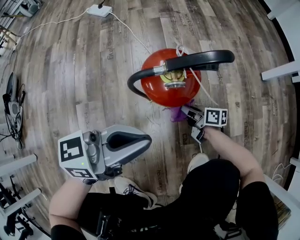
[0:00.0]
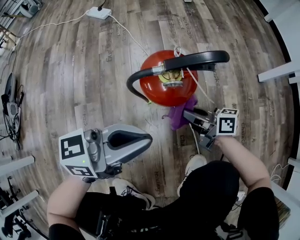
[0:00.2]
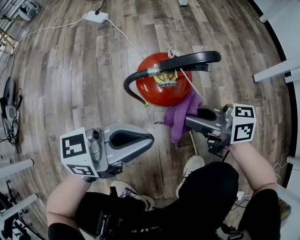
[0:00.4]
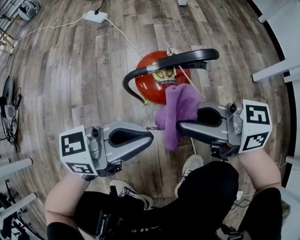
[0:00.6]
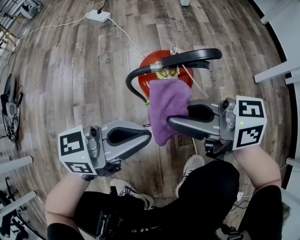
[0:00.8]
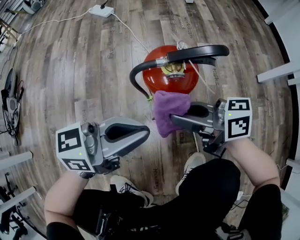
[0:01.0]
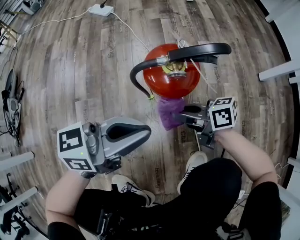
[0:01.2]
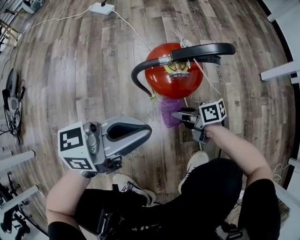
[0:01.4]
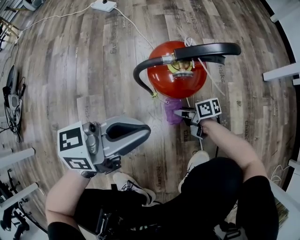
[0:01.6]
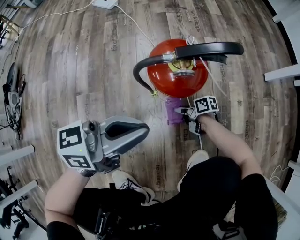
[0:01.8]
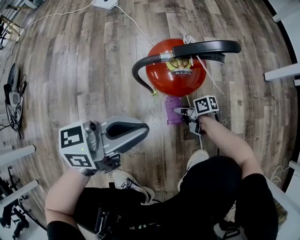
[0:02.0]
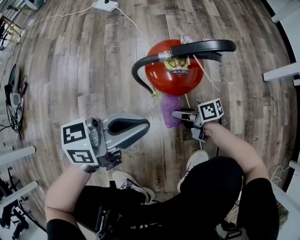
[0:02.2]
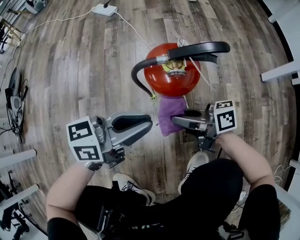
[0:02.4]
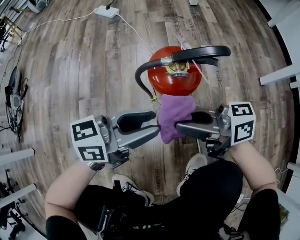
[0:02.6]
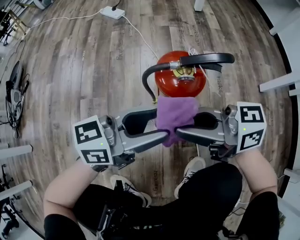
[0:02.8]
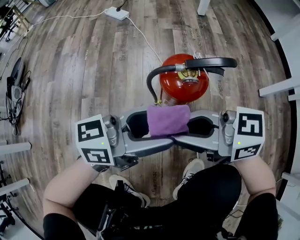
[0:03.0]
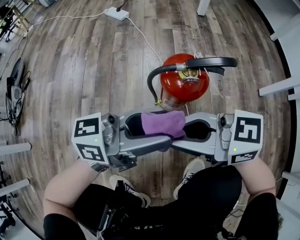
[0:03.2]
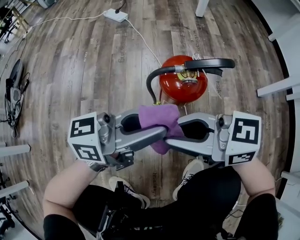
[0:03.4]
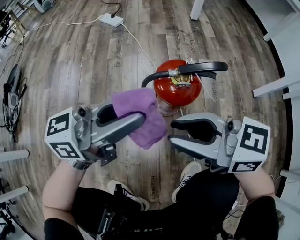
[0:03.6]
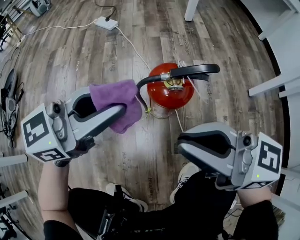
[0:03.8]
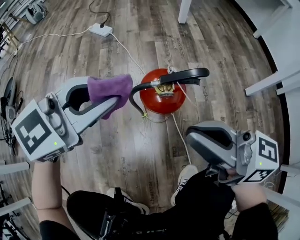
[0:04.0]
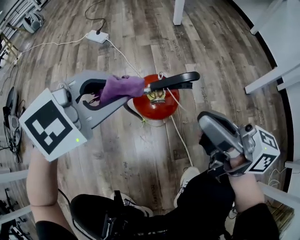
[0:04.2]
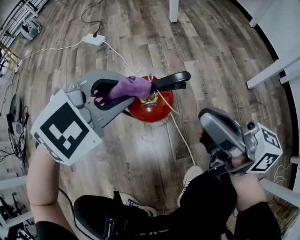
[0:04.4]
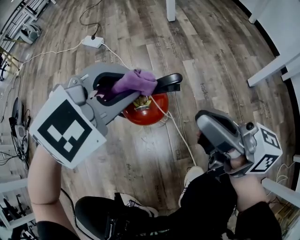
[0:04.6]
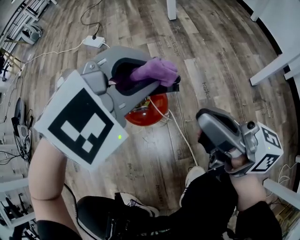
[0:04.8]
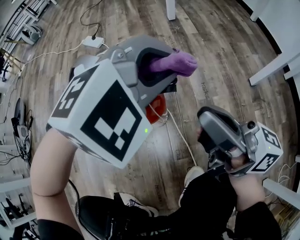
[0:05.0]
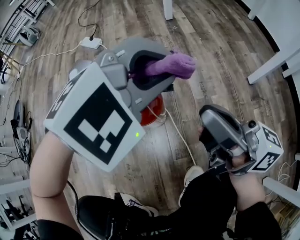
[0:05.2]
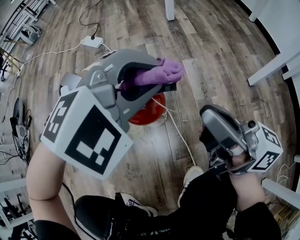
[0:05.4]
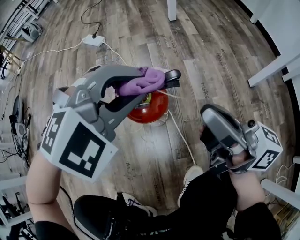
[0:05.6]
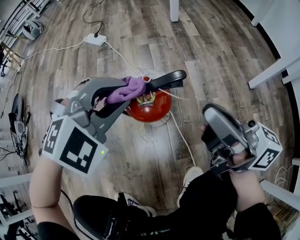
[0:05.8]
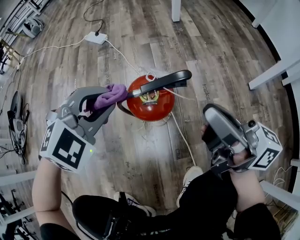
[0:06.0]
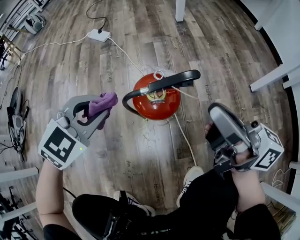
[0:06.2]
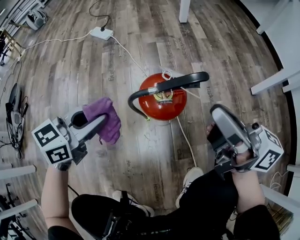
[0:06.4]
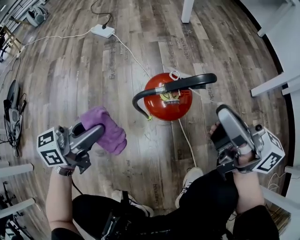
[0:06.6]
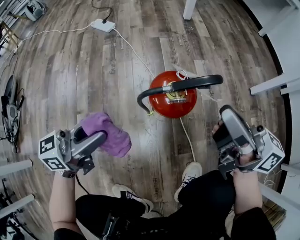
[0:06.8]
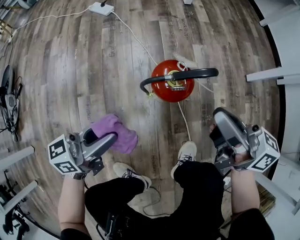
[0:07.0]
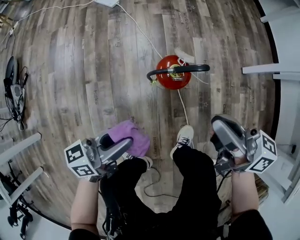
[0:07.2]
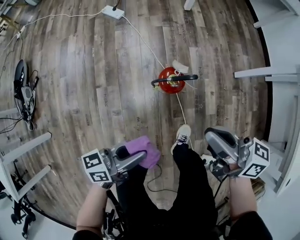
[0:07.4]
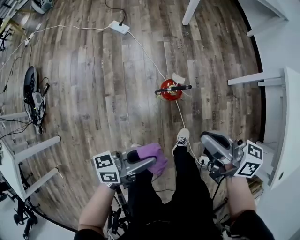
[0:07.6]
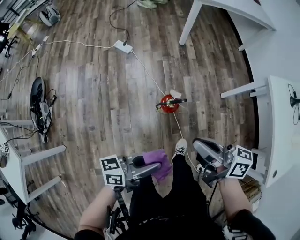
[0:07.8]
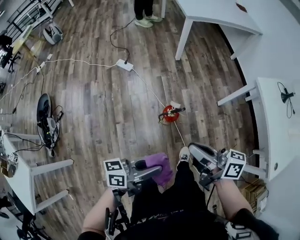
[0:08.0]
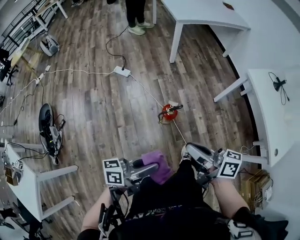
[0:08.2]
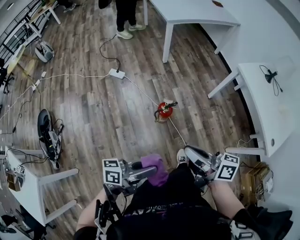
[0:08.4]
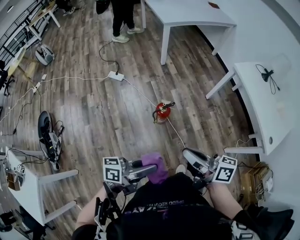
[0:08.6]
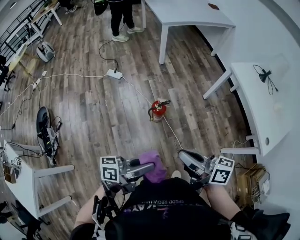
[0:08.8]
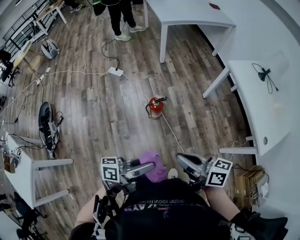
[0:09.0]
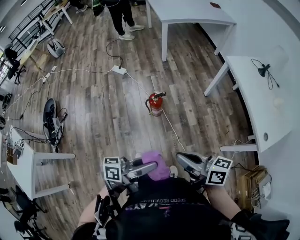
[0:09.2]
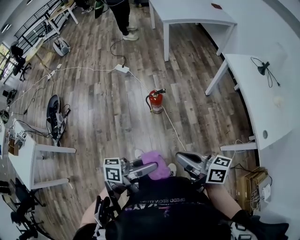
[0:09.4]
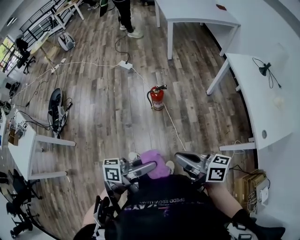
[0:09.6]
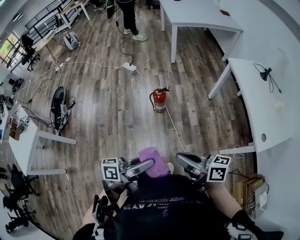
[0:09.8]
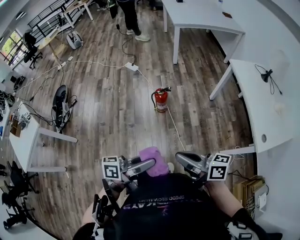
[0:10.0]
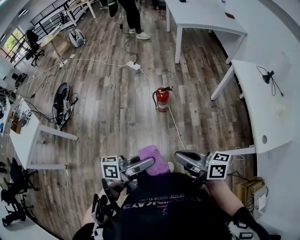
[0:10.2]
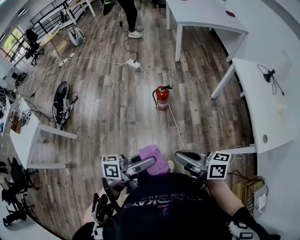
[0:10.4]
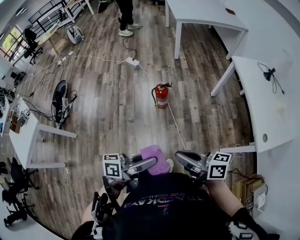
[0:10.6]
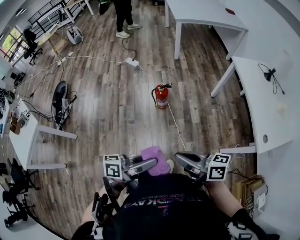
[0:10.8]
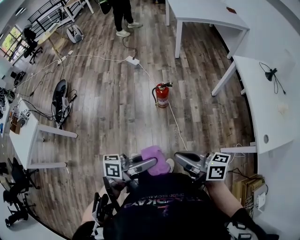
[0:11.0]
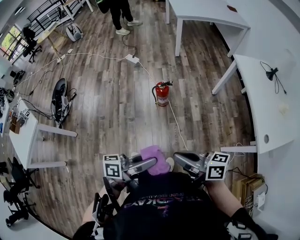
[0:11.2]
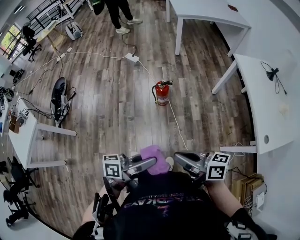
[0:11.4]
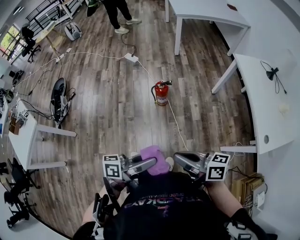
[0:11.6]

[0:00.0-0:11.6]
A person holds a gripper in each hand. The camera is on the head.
0:00.0 to 0:01.4: The right gripper goes upward and returns, about 35 cm each way, and changes its angle by roughly 20 degrees.
0:01.4 to 0:02.8: The left gripper opens up, while the right gripper moves upward, about 25 cm, and swivels about 40 degrees.
0:02.8 to 0:04.4: The right gripper changes place by approximately 15 cm, and swivels roughly 40 degrees. Meanwhile the left gripper ends up some 15 cm from where it was, points its fingers about 40 degrees further downward, and closes up.
0:04.4 to 0:05.8: The left gripper goes to the right and returns, approximately 10 cm each way.
0:05.8 to 0:07.2: The left gripper moves backward, to the left and upward, about 20 cm, and twists approximately 90 degrees counterclockwise, seen from behind. Meanwhile the right gripper shifts some 15 cm upward and to the left, and swivels some 20 degrees.
0:07.2 to 0:08.8: Both grippers move upward and backward, some 50 cm. The left gripper rotates some 30 degrees.
0:08.8 to 0:10.2: The grippers both shift backward and to the right by about 25 cm. The right gripper rotates approximately 20 degrees.
0:10.2 to 0:11.6: The grippers make only small movements.

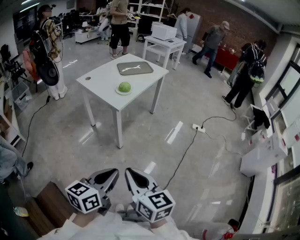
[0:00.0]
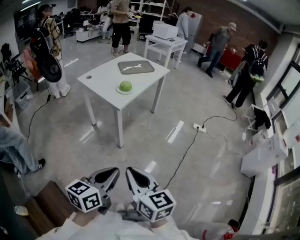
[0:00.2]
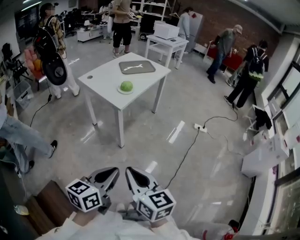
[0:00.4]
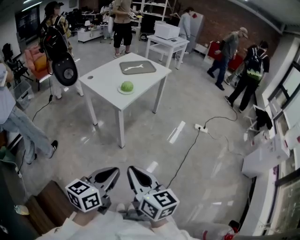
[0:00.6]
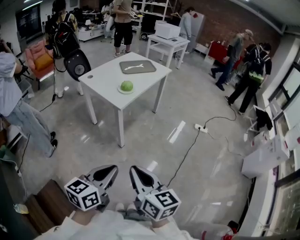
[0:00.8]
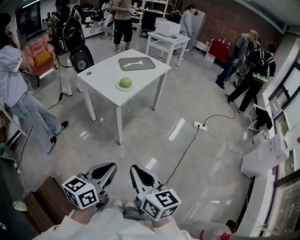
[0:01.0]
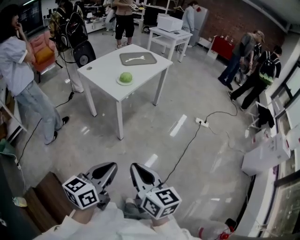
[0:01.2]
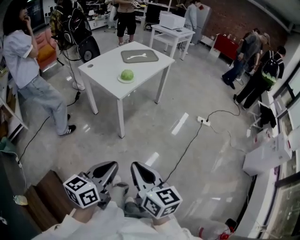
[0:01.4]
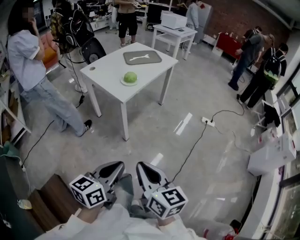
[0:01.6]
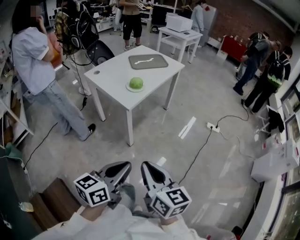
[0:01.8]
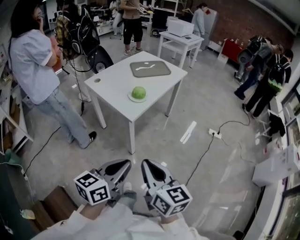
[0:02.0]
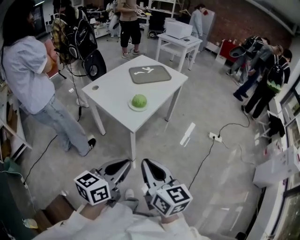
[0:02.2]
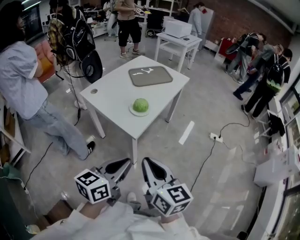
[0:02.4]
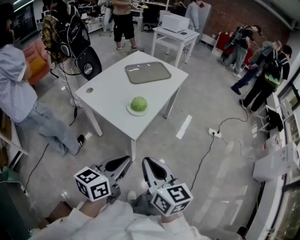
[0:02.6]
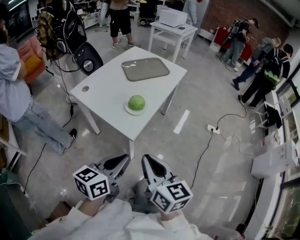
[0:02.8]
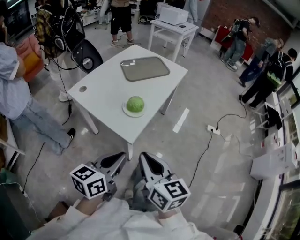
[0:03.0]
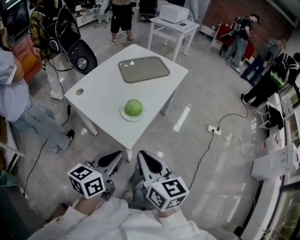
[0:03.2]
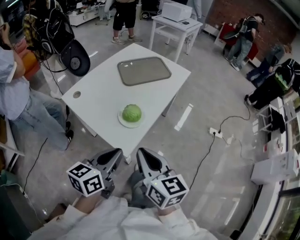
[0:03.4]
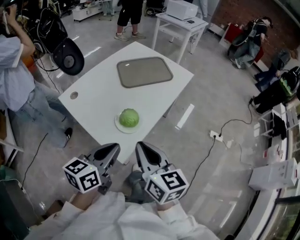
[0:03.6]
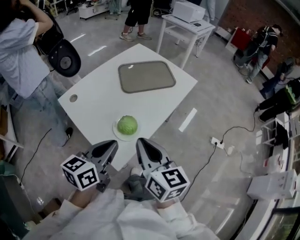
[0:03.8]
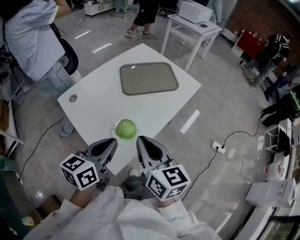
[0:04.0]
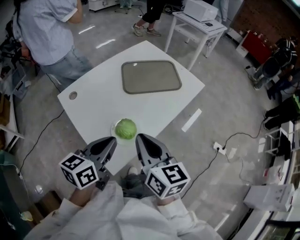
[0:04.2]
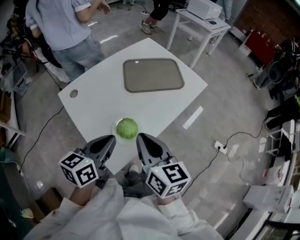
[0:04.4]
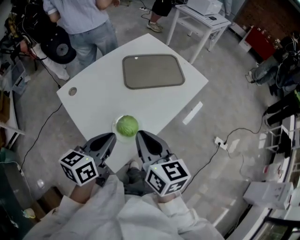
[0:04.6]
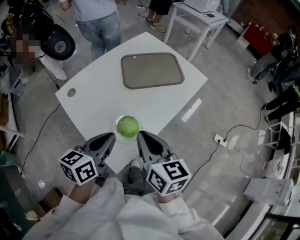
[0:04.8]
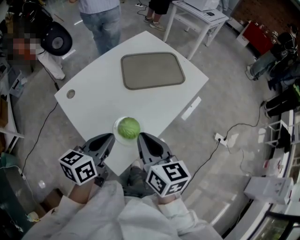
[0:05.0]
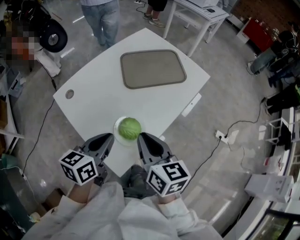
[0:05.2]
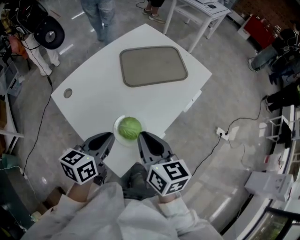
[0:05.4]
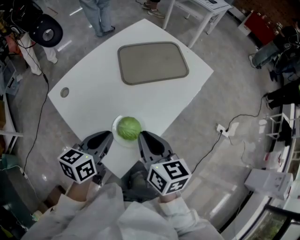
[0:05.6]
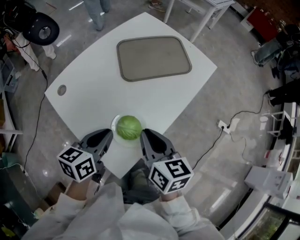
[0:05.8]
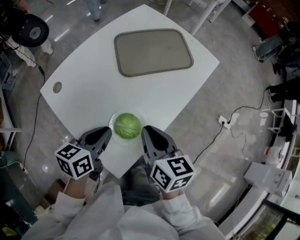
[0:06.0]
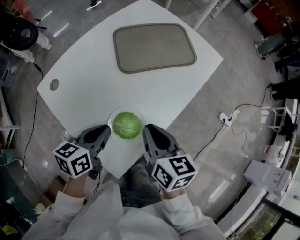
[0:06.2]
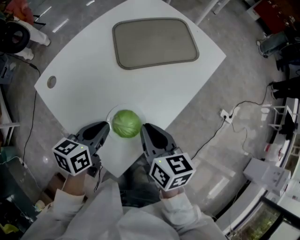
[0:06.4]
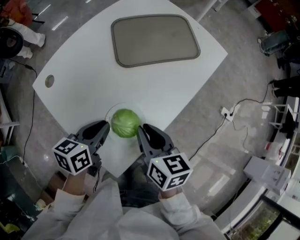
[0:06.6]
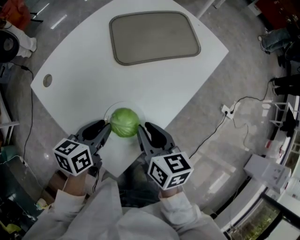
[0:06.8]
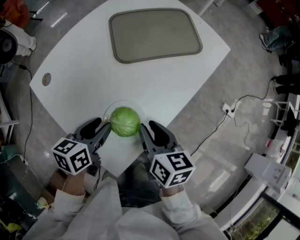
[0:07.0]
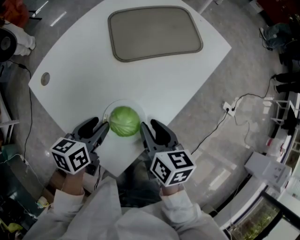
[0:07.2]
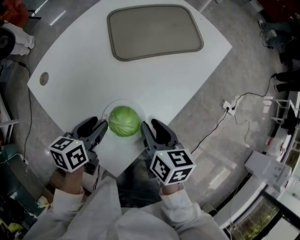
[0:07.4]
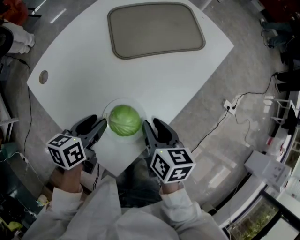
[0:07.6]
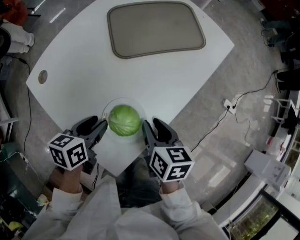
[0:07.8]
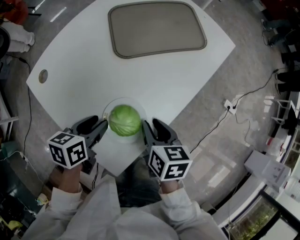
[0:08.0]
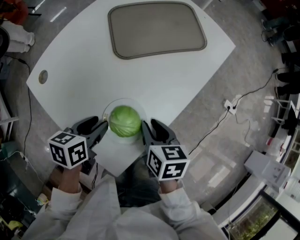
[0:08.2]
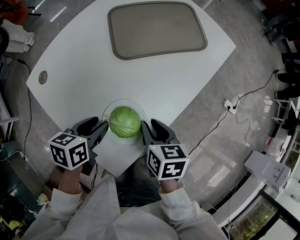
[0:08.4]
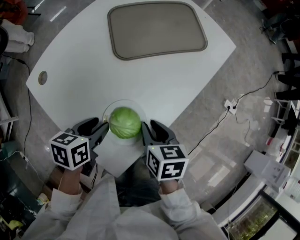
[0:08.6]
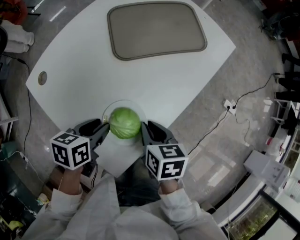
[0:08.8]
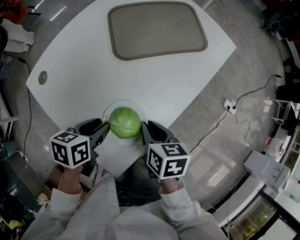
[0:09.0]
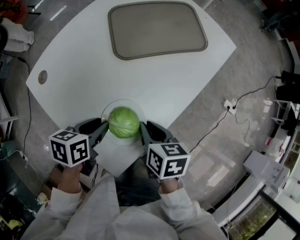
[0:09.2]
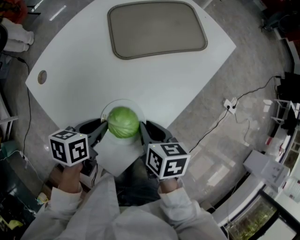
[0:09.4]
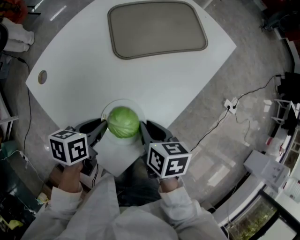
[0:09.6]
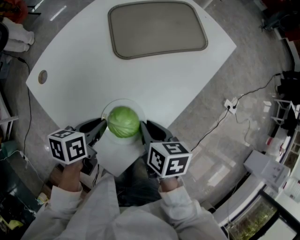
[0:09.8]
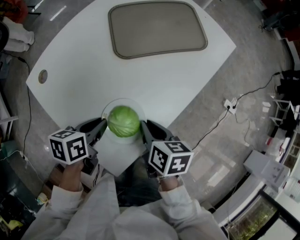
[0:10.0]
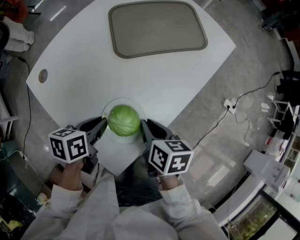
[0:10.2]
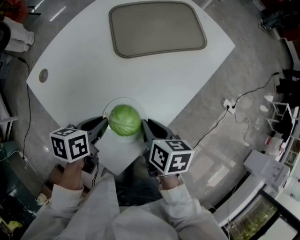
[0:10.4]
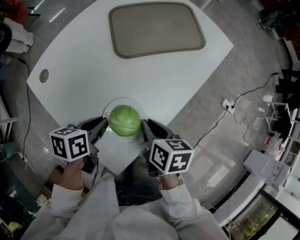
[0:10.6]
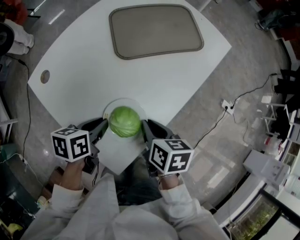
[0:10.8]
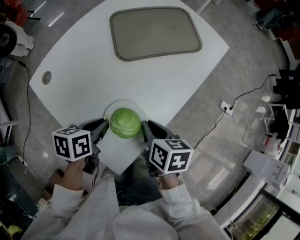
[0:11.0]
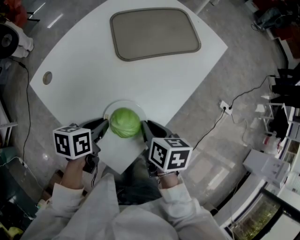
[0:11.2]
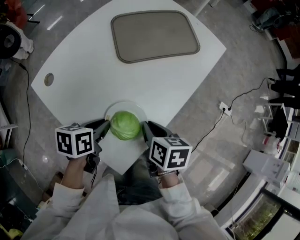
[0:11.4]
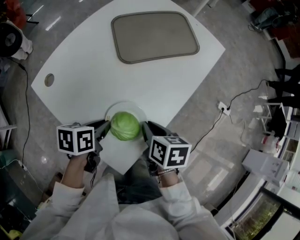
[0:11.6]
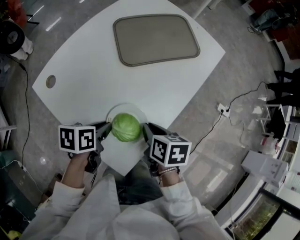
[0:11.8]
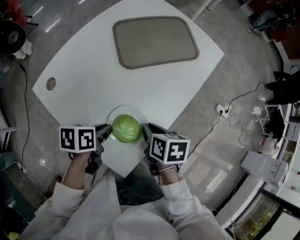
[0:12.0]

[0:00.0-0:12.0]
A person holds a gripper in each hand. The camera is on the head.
0:00.0 to 0:01.6: Both grippers move forward, roughly 5 cm.
0:01.6 to 0:03.0: The two grippers go roughly 35 cm forward and to the left.
0:03.0 to 0:04.4: Both grippers travel together forward, some 25 cm.
0:04.4 to 0:06.0: The two grippers go about 10 cm downward and forward.
0:06.0 to 0:07.6: The grippers both shift downward by approximately 10 cm. The left gripper opens. The right gripper opens its fingers.
0:07.6 to 0:09.0: The grippers move only a little.
0:09.0 to 0:10.4: The left gripper closes its fingers.
0:10.4 to 0:12.0: The grippers make only small movements.
